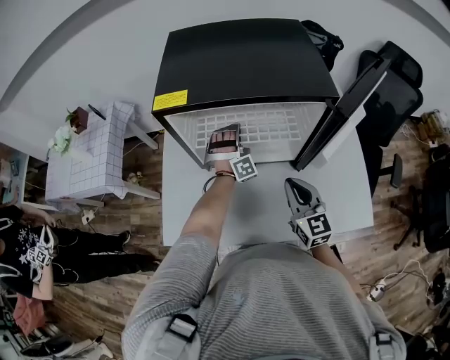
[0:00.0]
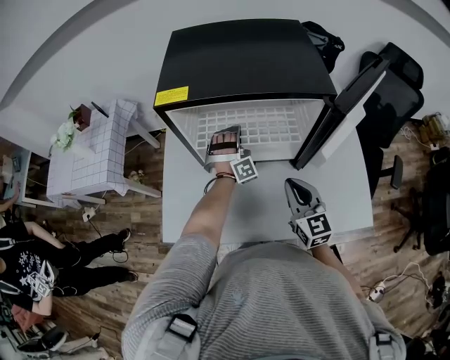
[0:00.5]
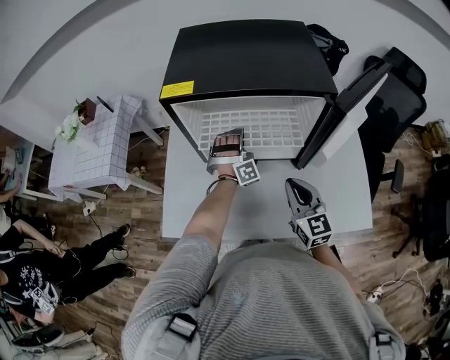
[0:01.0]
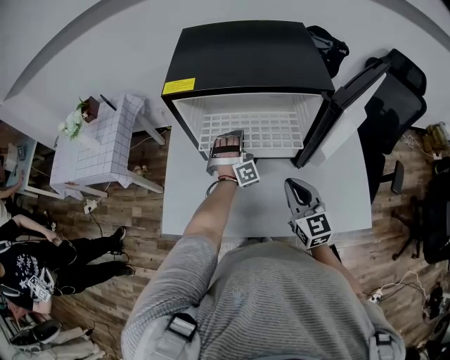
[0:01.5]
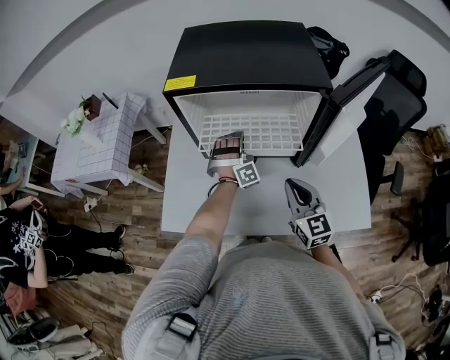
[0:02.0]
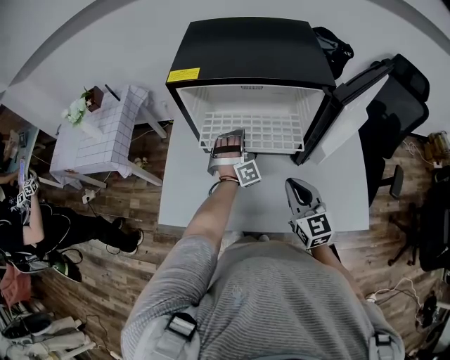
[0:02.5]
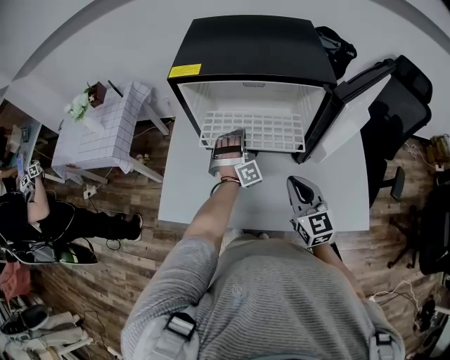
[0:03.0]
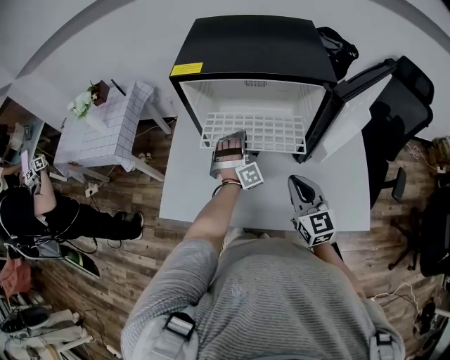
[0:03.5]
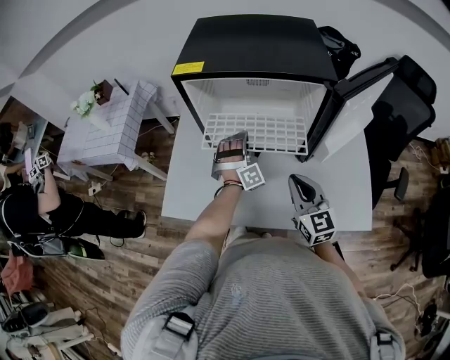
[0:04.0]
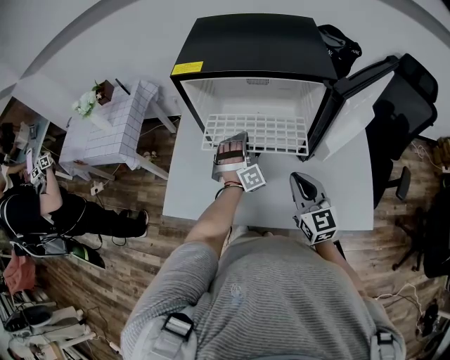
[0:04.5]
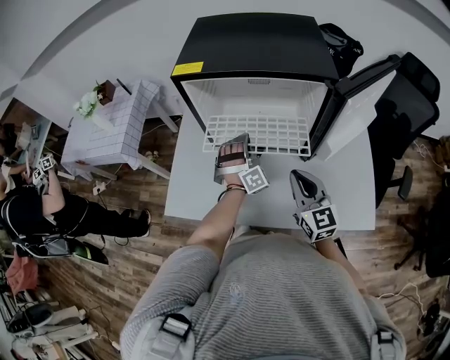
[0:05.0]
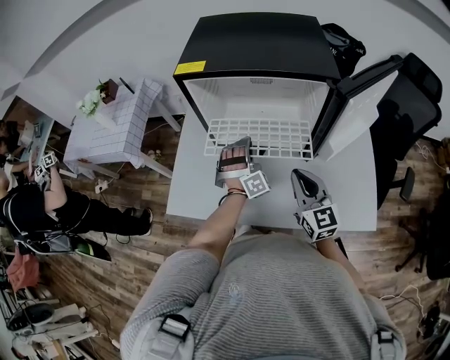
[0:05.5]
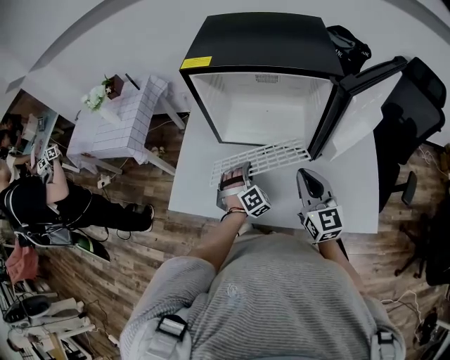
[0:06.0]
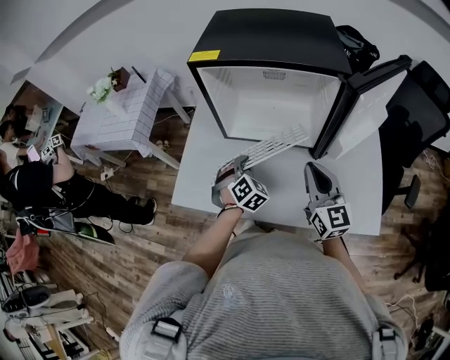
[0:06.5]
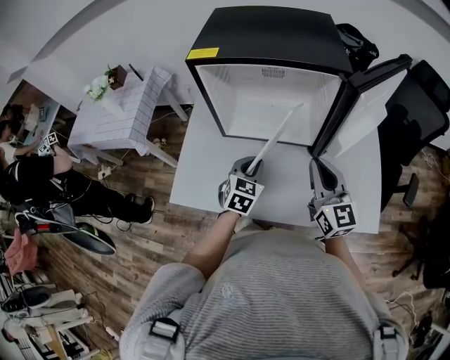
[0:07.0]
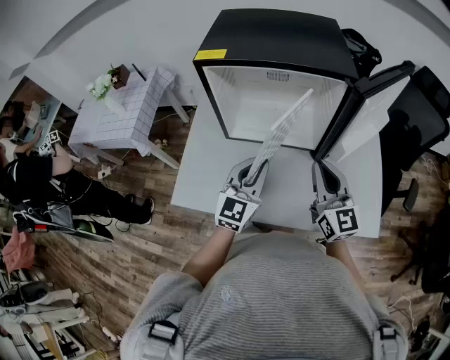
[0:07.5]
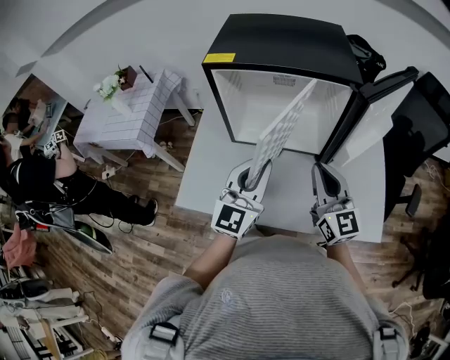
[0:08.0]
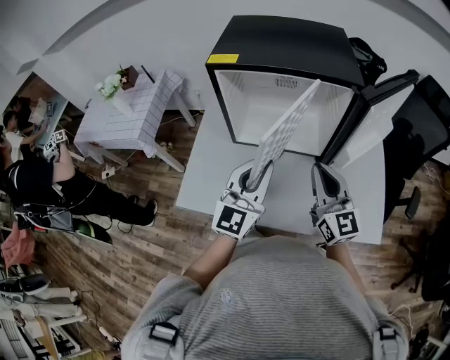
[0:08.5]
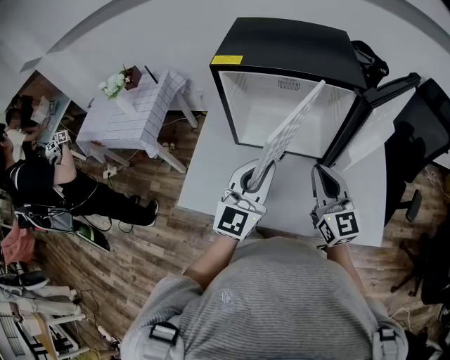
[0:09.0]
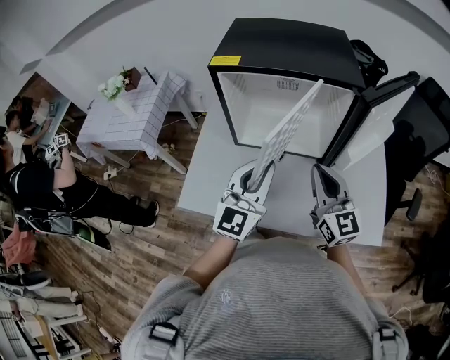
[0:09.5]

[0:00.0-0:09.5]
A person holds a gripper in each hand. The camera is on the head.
0.0 to 2.0 s: The left gripper shifts approximately 5 cm backward.
2.0 to 4.0 s: The grippers stay close to where they were, moving slightly.
4.0 to 5.5 s: The grippers stay close to where they were, moving slightly.
5.5 to 7.5 s: The right gripper goes approximately 5 cm upward. Meanwhile the left gripper goes about 15 cm backward and upward, and rotates around the line of its fingers by roughly 60 degrees, counterclockwise from behind.
7.5 to 9.5 s: The left gripper is displaced upward by roughly 10 cm.

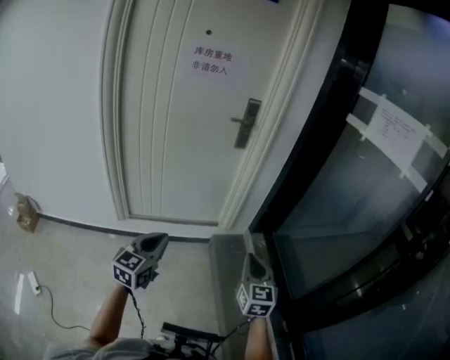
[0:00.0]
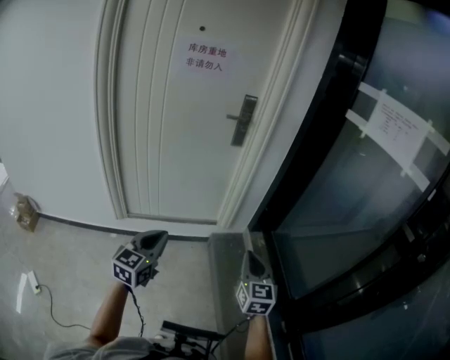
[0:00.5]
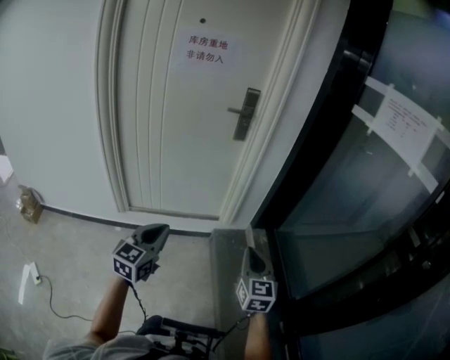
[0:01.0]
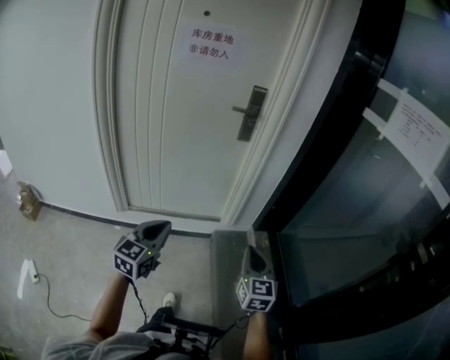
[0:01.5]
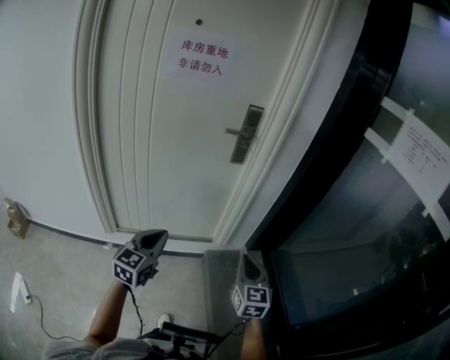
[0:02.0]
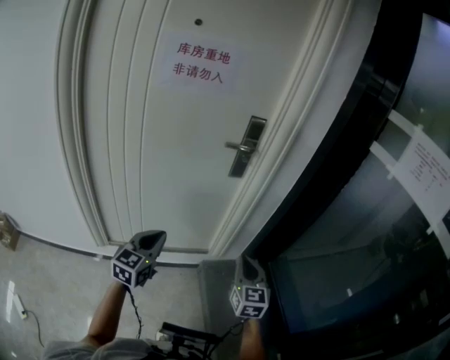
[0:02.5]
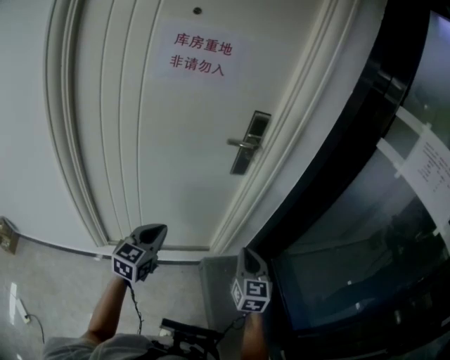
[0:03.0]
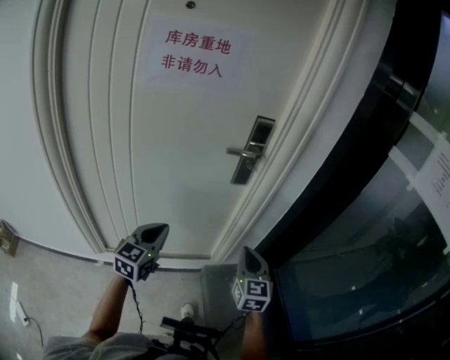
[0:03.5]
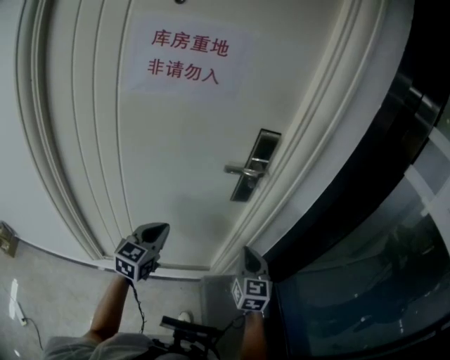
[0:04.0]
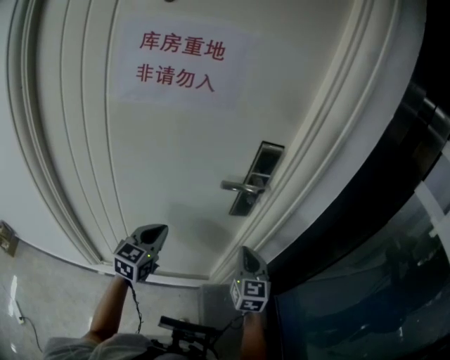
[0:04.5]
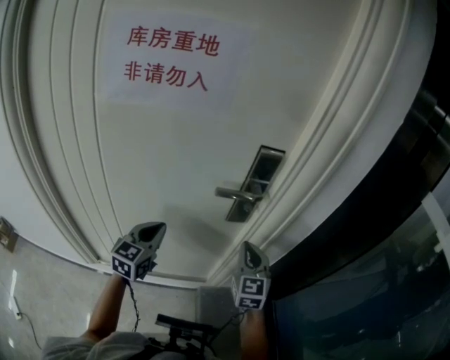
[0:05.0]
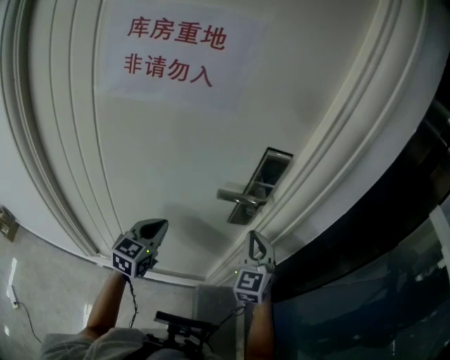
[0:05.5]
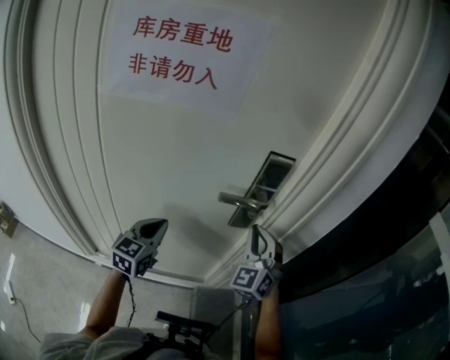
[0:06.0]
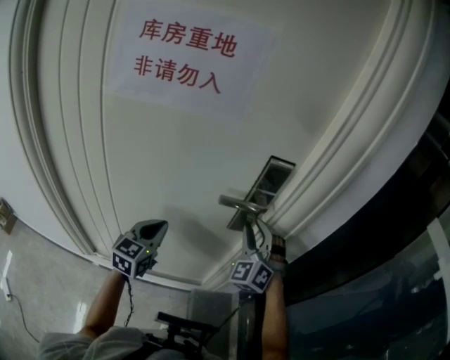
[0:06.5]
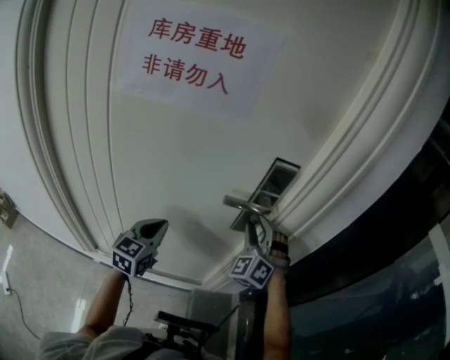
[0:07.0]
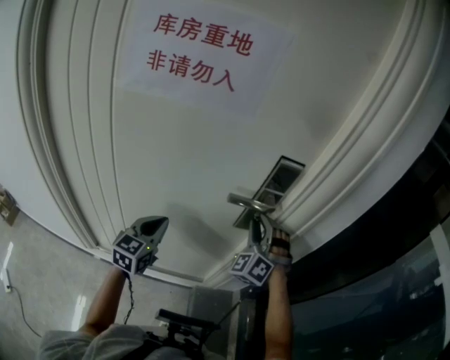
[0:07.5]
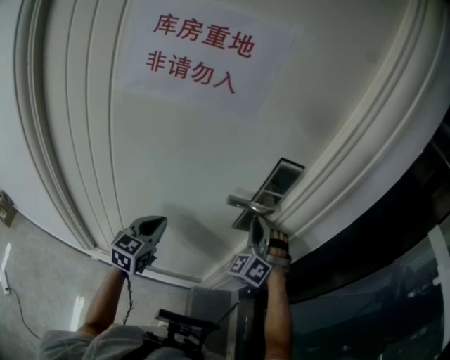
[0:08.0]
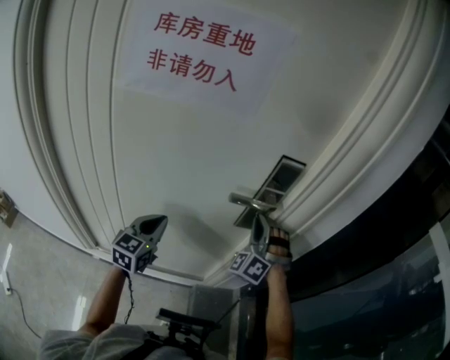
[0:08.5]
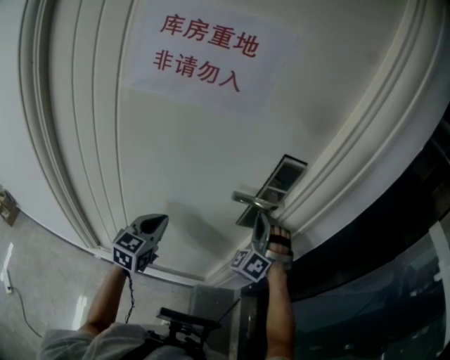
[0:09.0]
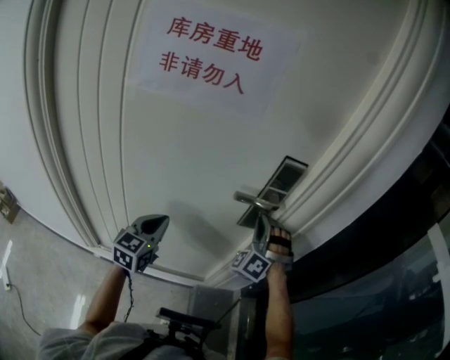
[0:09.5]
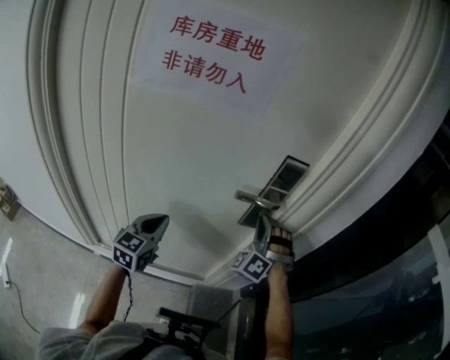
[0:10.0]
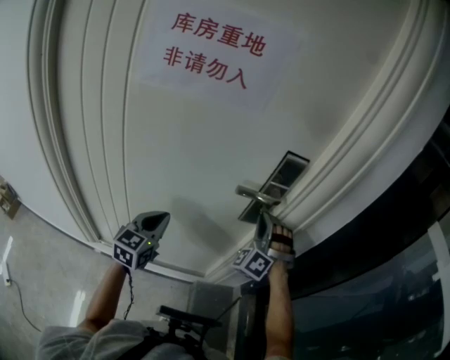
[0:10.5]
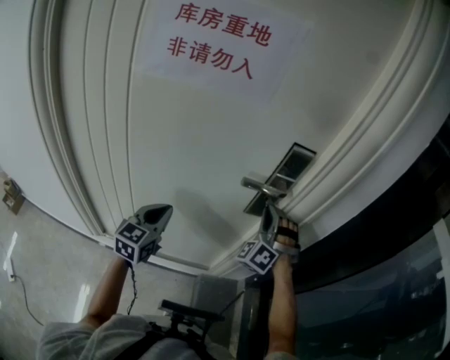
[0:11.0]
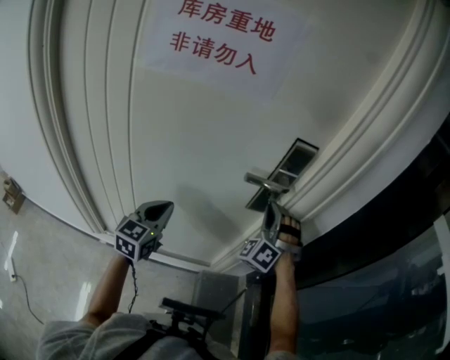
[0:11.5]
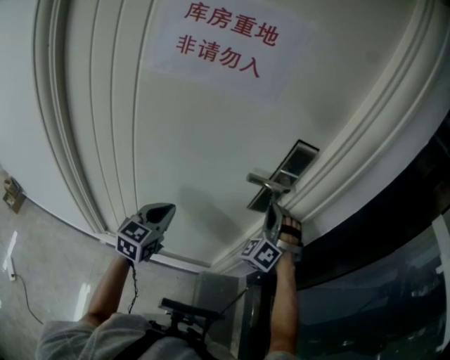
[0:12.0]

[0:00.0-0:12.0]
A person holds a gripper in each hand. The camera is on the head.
0.0 to 2.0 s: Both grippers move forward, some 20 cm.
2.0 to 4.0 s: Both grippers move forward, about 30 cm.
4.0 to 6.0 s: The left gripper heads forward, covering some 10 cm; the right gripper is displaced forward and upward by approximately 20 cm, and rotates around the line of its fingers by approximately 40 degrees, counterclockwise from behind.
6.0 to 8.0 s: The right gripper swivels approximately 30 degrees, and opens, then closes again.
8.0 to 12.0 s: There are only small adjustments of the grippers.

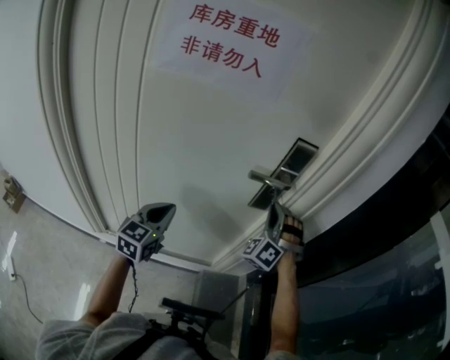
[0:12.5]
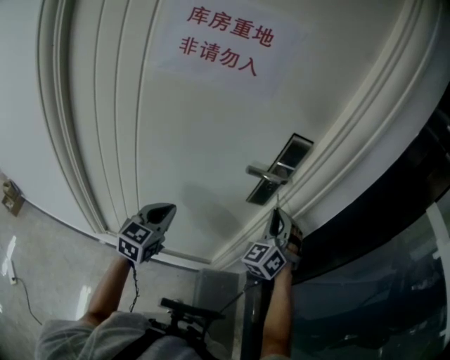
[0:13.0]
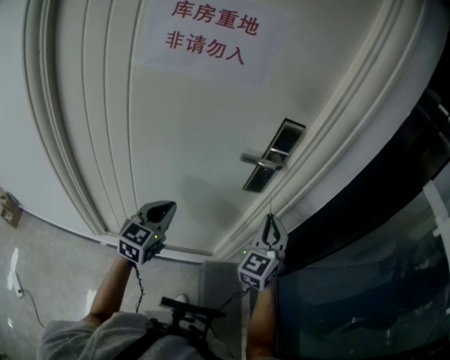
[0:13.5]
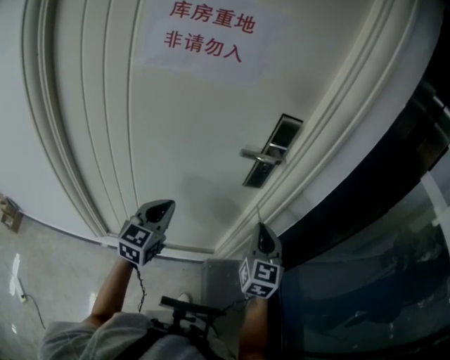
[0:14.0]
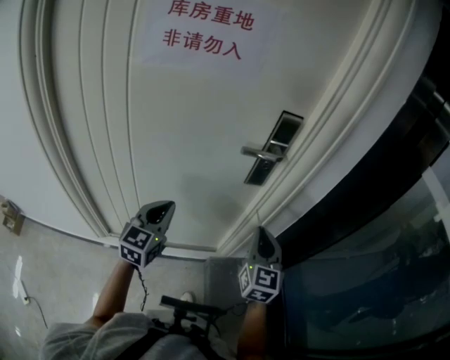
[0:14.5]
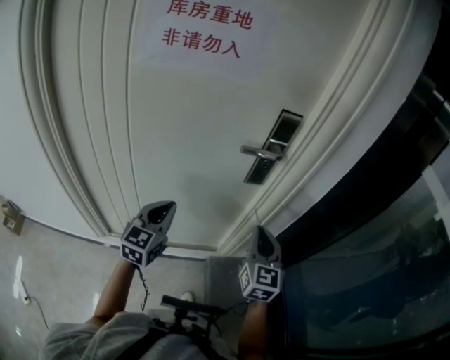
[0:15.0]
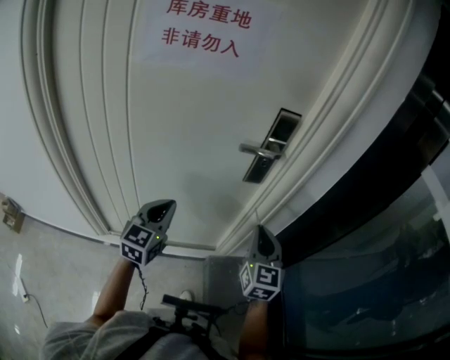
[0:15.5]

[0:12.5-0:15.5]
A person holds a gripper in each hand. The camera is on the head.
12.5 to 14.0 s: The right gripper travels backward by roughly 15 cm, and rotates around the line of its fingers by roughly 70 degrees, clockwise from behind.
14.0 to 15.5 s: There are only small adjustments of the grippers.

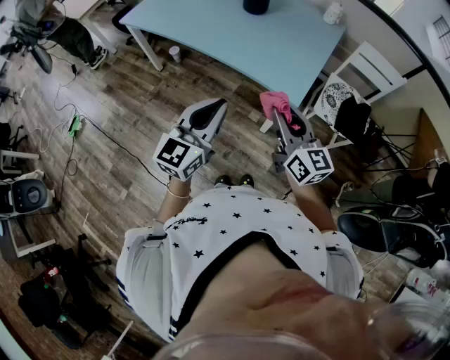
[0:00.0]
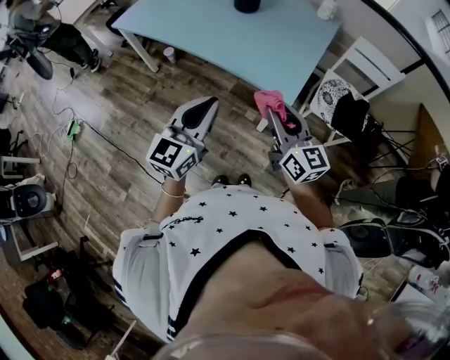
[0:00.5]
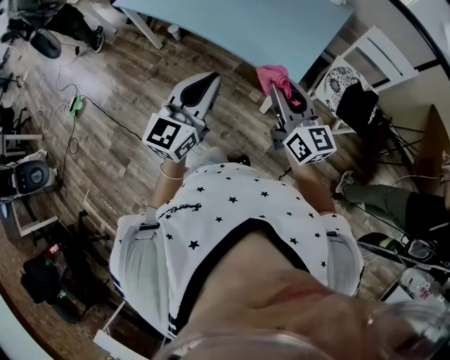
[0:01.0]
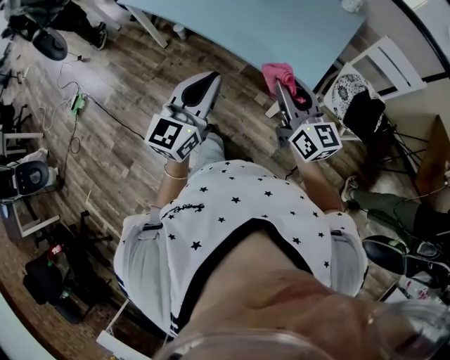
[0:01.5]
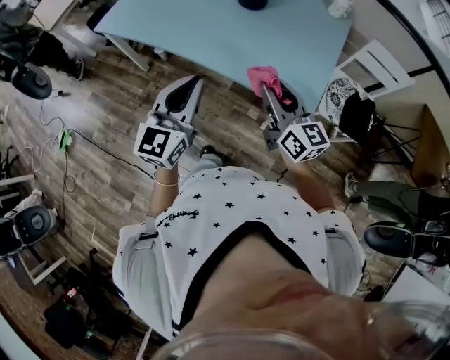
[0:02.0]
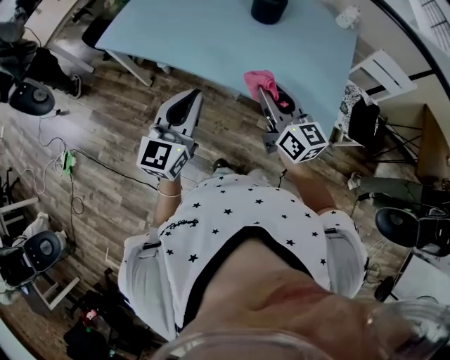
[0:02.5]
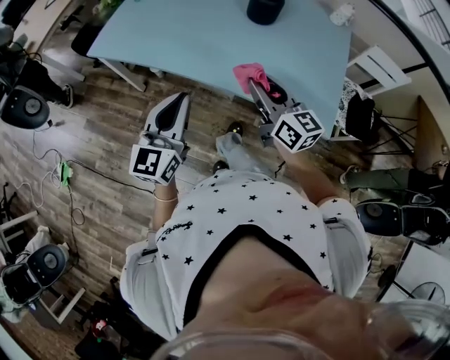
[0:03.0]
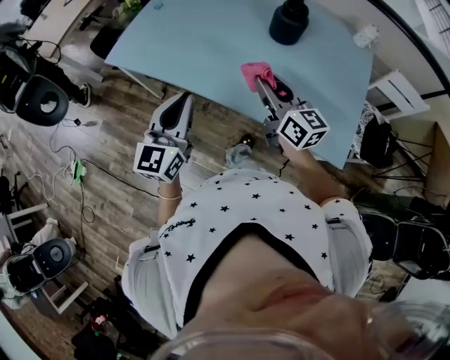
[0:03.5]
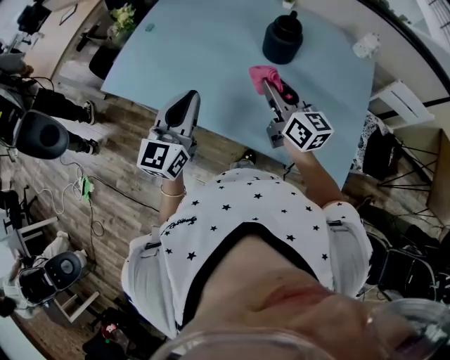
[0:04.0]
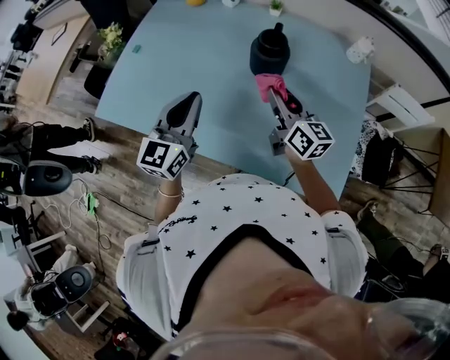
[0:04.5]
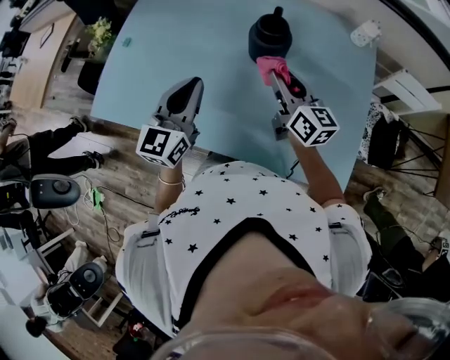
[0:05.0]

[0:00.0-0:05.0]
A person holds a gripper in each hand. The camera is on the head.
0.0 to 2.5 s: Both grippers move forward and to the left, approximately 30 cm.
2.5 to 5.0 s: The grippers both shift forward by some 30 cm.
